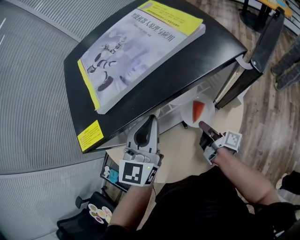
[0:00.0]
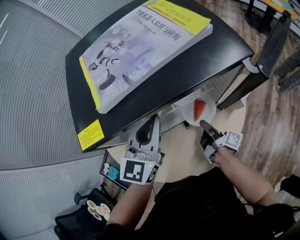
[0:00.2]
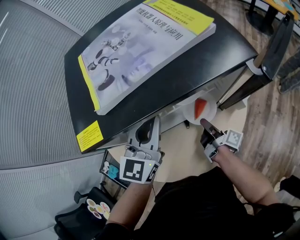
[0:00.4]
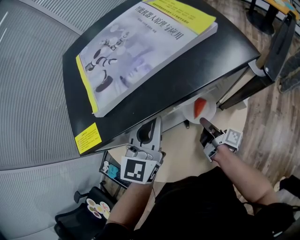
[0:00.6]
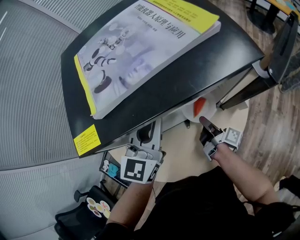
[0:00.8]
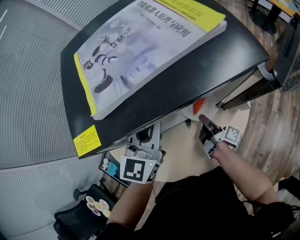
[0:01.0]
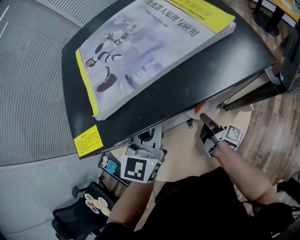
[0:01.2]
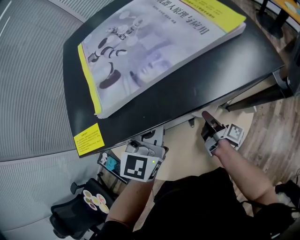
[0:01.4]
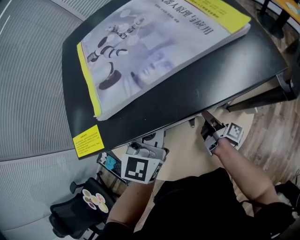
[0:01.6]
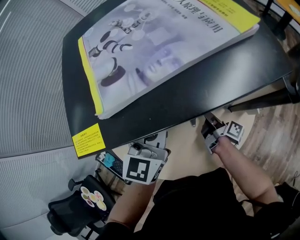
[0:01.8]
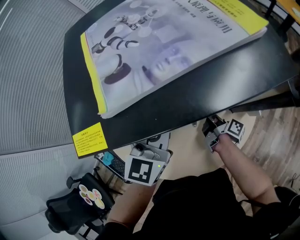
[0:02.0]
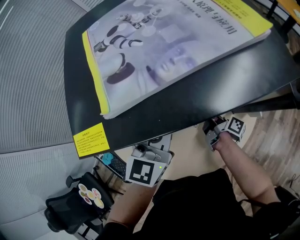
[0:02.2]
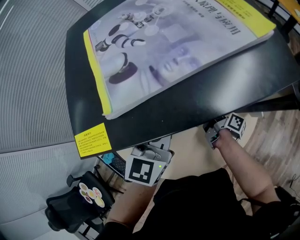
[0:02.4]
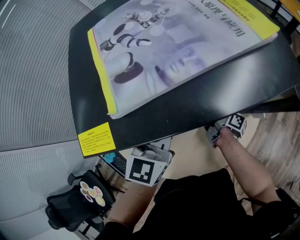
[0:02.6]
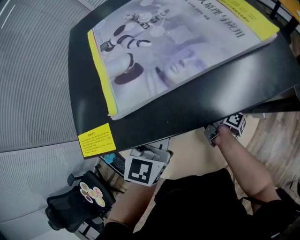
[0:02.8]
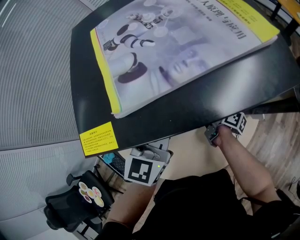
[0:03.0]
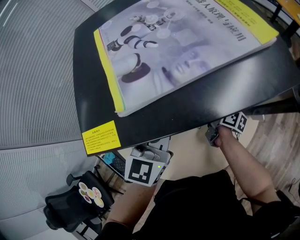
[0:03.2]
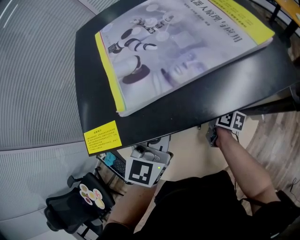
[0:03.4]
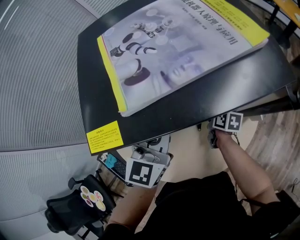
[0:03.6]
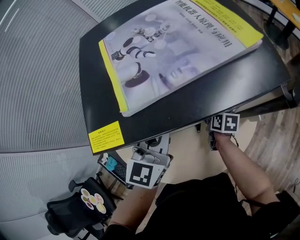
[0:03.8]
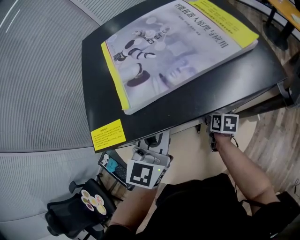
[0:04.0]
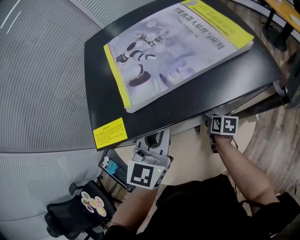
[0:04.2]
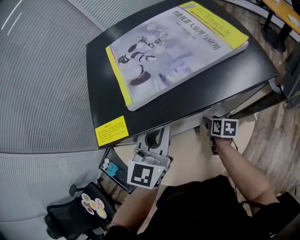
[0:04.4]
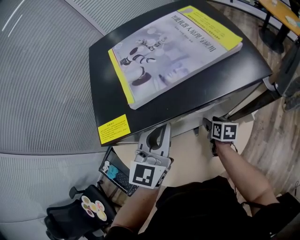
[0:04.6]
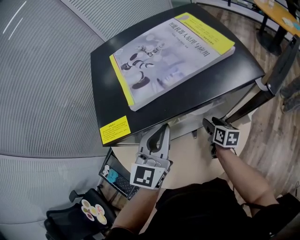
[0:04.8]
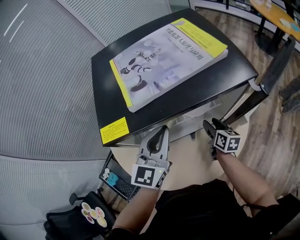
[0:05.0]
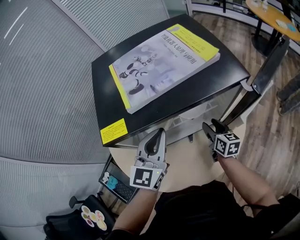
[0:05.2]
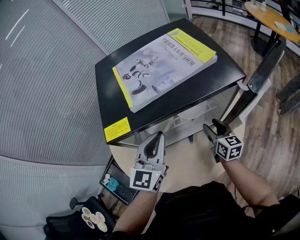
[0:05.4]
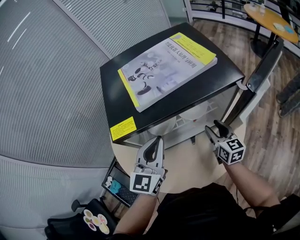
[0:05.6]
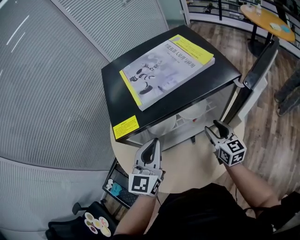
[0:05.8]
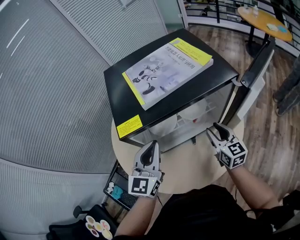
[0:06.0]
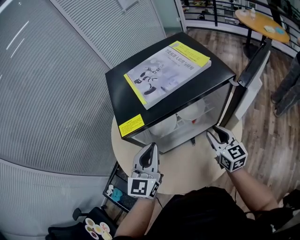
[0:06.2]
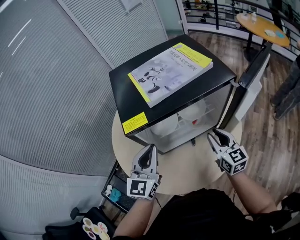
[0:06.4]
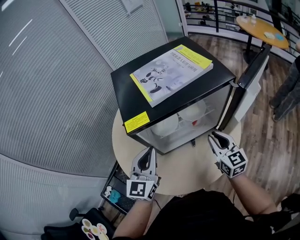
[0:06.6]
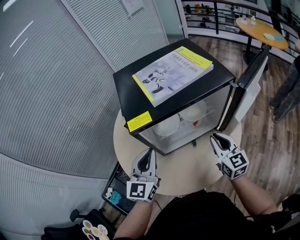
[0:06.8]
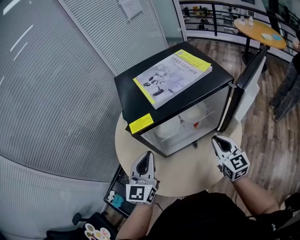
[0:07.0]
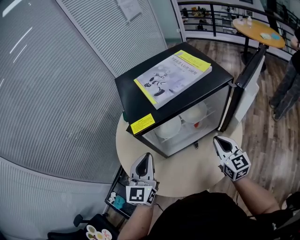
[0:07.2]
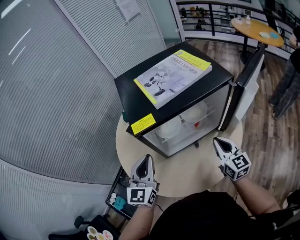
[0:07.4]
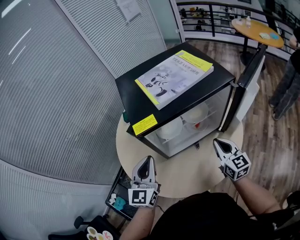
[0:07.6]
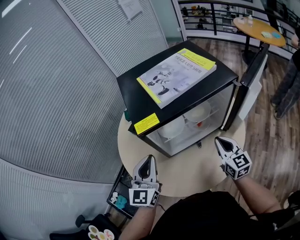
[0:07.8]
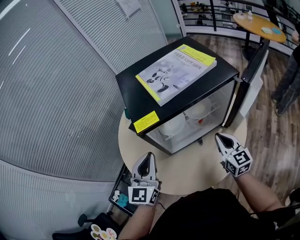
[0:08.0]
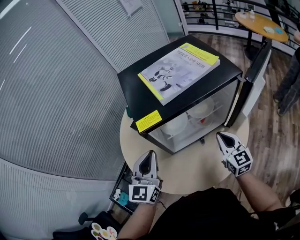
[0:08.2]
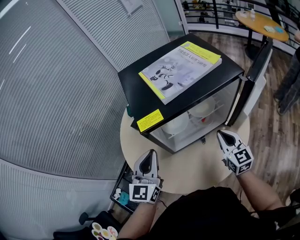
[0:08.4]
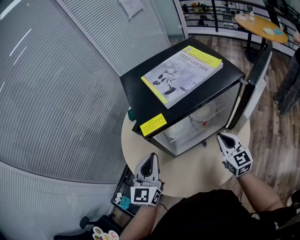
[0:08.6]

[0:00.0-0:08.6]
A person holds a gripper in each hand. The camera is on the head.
0:00.0 to 0:01.4: The right gripper travels forward by some 5 cm.
0:01.4 to 0:02.8: The right gripper changes place by approximately 5 cm.
0:02.8 to 0:04.4: The right gripper rolls counterclockwise, seen from behind, by approximately 40 degrees, and opens.
0:04.4 to 0:05.8: The right gripper travels upward by roughly 20 cm, and angles its fingers upward, by about 30 degrees; the left gripper goes roughly 5 cm backward.
0:05.8 to 0:07.2: The left gripper heads to the left and backward, covering some 10 cm. Meanwhile the right gripper goes some 10 cm backward and upward, and closes.
0:07.2 to 0:08.6: The grippers make only small movements.

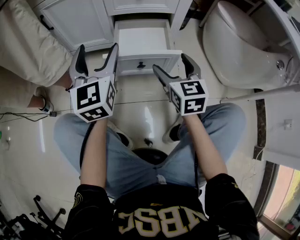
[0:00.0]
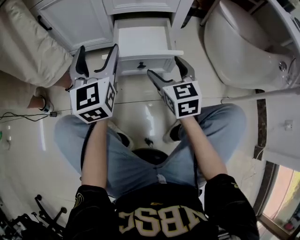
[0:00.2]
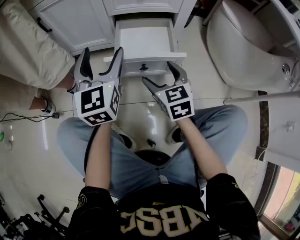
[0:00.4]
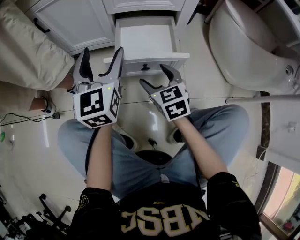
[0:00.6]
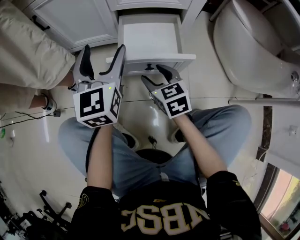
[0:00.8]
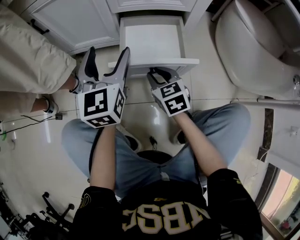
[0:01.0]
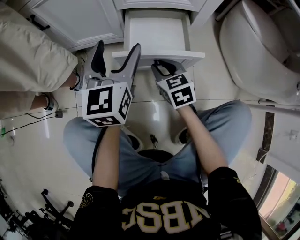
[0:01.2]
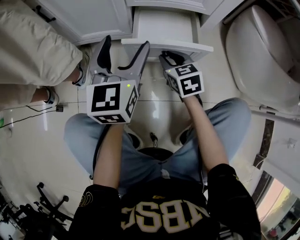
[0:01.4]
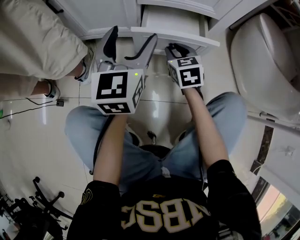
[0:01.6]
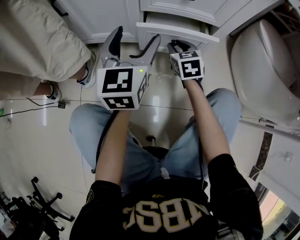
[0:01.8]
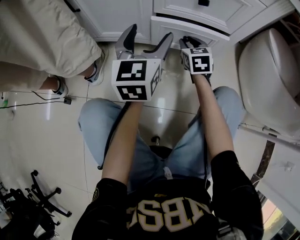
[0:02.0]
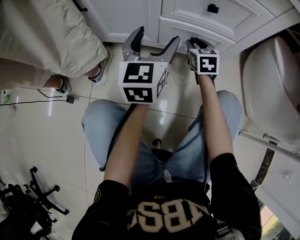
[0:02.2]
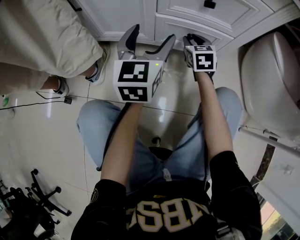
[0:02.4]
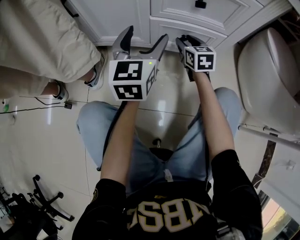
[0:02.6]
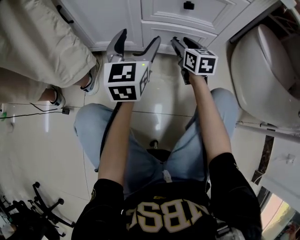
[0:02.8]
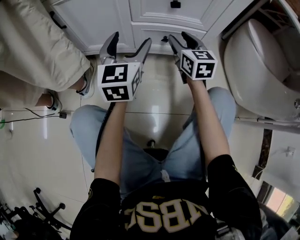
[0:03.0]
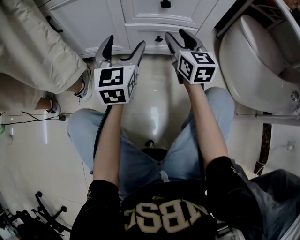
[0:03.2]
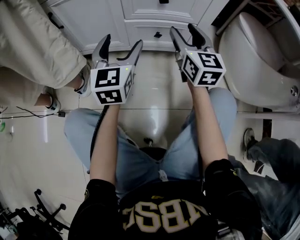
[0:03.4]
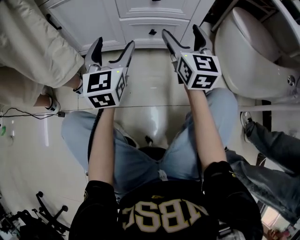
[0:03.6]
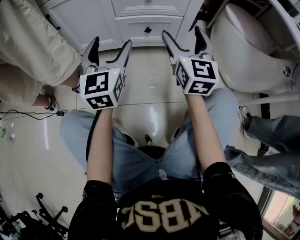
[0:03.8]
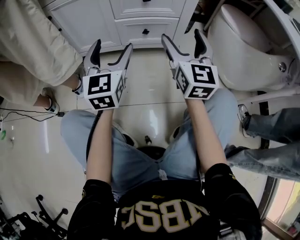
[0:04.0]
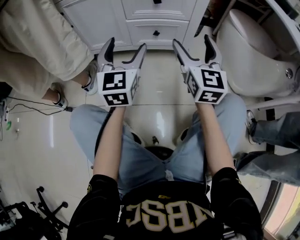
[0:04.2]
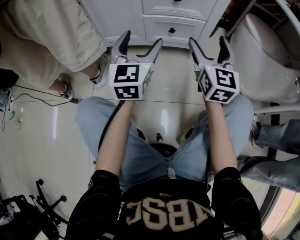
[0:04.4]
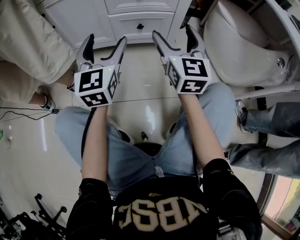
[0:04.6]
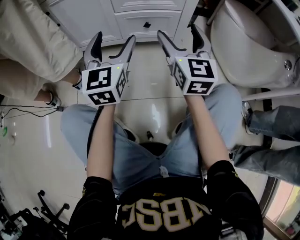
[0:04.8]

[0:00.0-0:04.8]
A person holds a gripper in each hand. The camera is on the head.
0:00.0 to 0:01.6: The left gripper shifts some 10 cm forward. The right gripper moves forward and downward, about 20 cm, and closes its fingers.
0:01.6 to 0:03.2: The right gripper heads upward, covering about 15 cm, and rotates roughly 30 degrees.
0:03.2 to 0:04.8: The right gripper moves backward and upward, about 15 cm, and opens. The left gripper moves backward, approximately 10 cm.

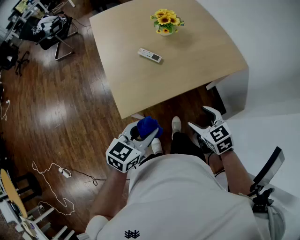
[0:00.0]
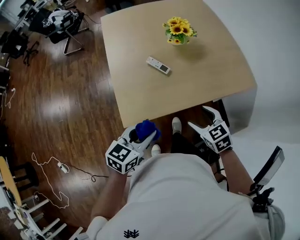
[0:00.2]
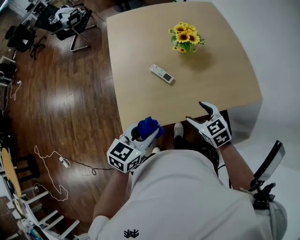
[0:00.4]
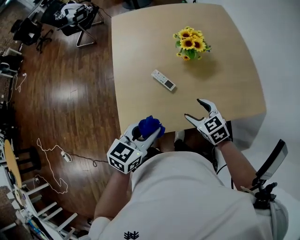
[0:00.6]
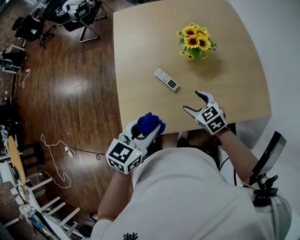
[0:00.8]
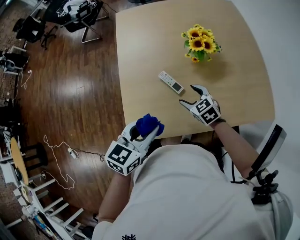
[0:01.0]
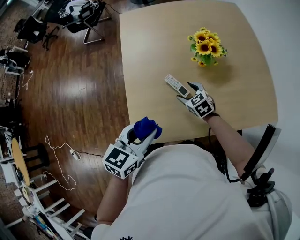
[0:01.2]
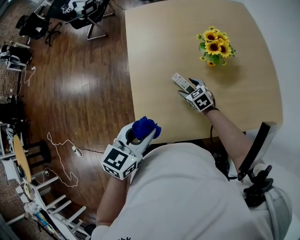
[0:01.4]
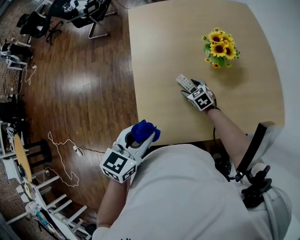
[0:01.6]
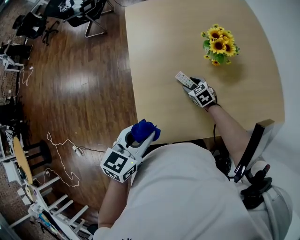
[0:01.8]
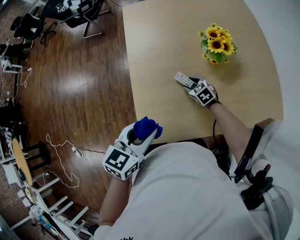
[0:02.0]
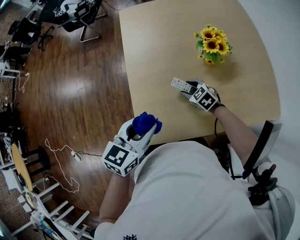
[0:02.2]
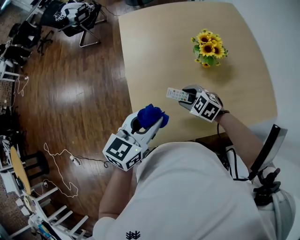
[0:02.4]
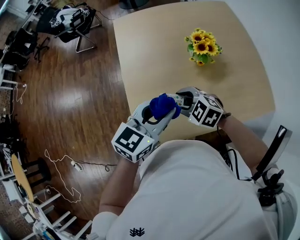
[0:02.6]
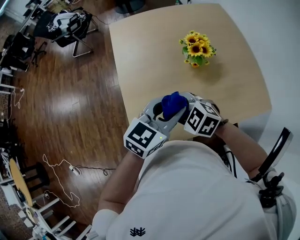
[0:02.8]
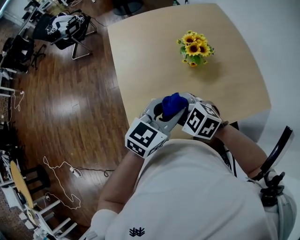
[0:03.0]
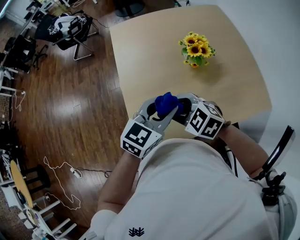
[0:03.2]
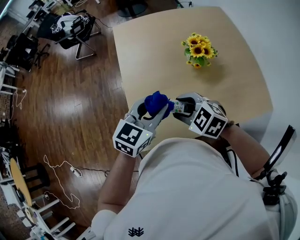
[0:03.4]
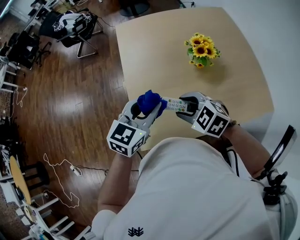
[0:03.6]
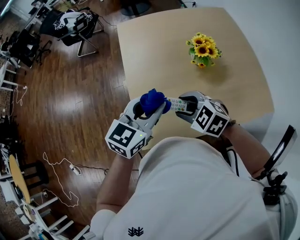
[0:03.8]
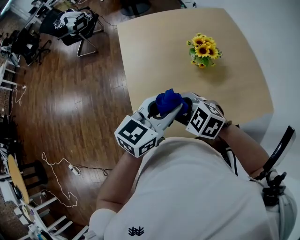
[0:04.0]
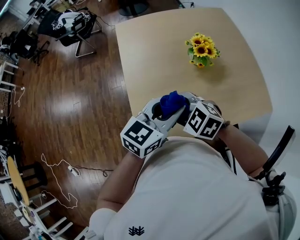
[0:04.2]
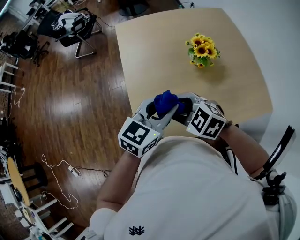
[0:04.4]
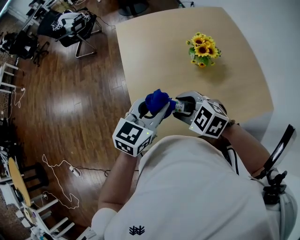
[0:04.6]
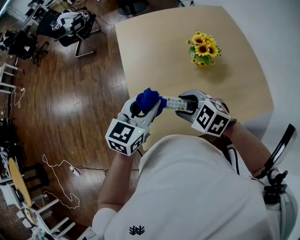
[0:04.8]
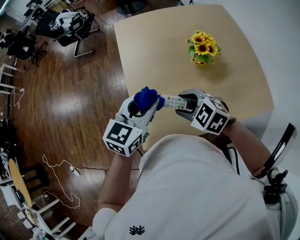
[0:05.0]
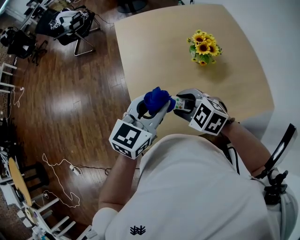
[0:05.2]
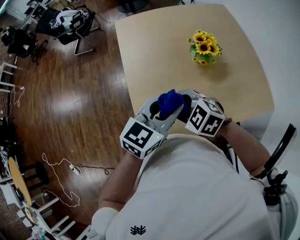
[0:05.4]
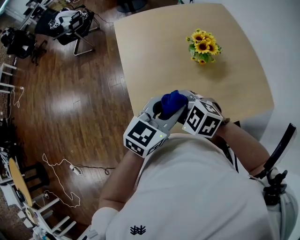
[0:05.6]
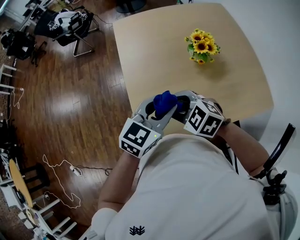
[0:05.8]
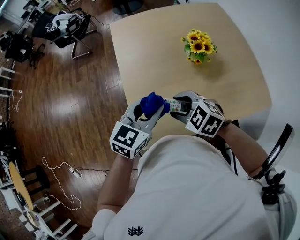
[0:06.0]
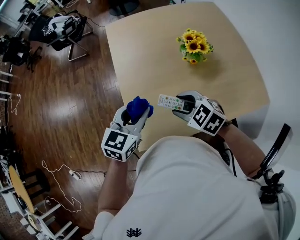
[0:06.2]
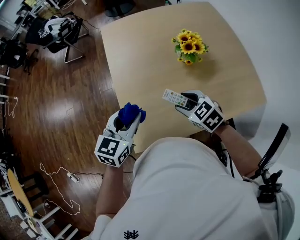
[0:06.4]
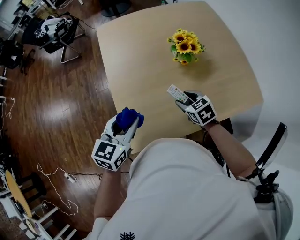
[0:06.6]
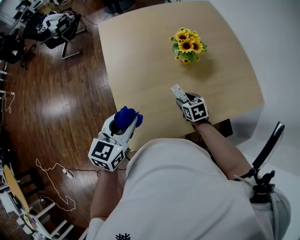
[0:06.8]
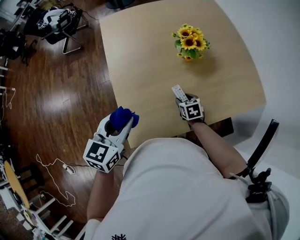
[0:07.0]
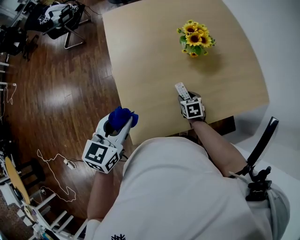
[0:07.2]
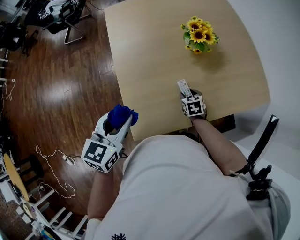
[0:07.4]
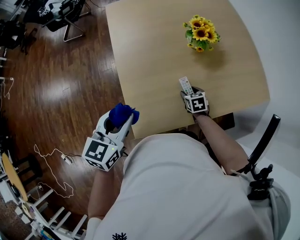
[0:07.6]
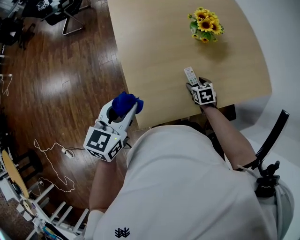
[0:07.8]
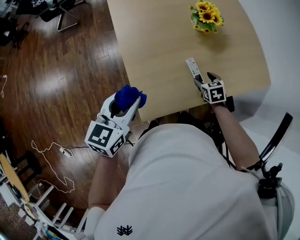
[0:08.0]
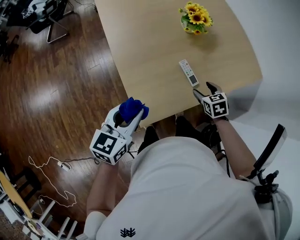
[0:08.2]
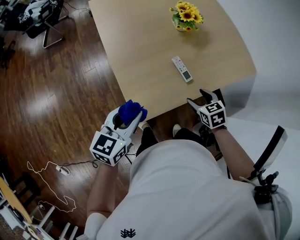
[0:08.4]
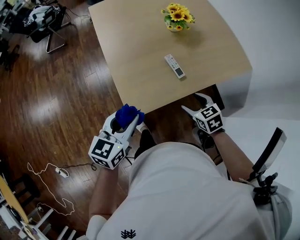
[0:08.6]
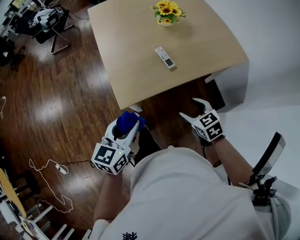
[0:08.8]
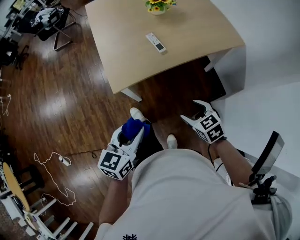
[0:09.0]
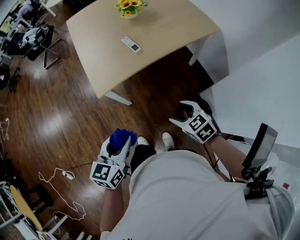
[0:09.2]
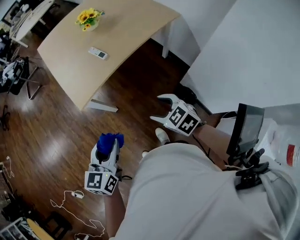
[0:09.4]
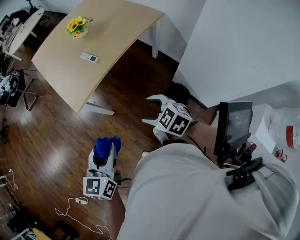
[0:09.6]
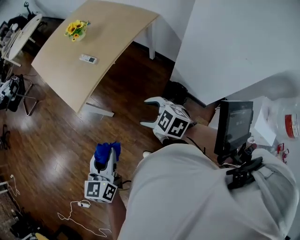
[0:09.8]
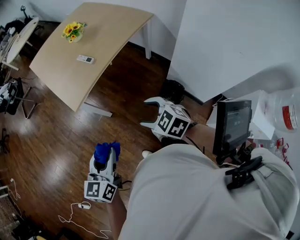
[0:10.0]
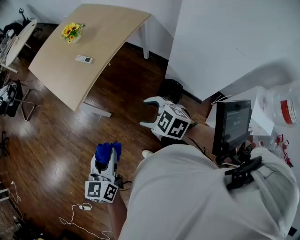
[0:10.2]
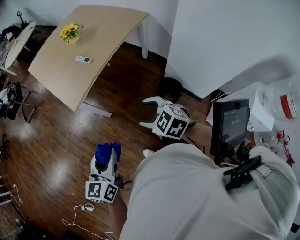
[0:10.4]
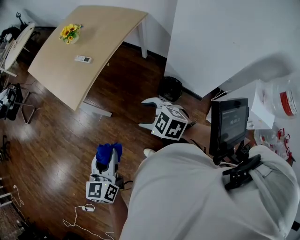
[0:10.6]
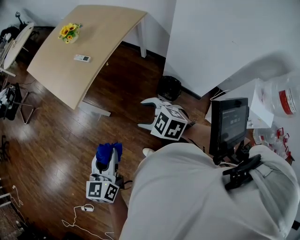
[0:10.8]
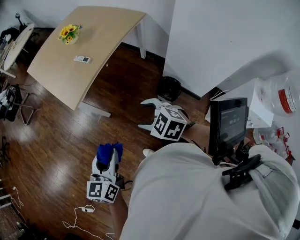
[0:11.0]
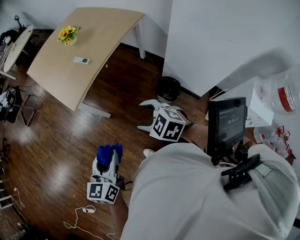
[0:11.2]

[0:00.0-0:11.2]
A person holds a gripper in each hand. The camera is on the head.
0:00.0 to 0:01.6: The right gripper shifts some 40 cm forward and downward; the left gripper shifts some 20 cm forward, and swivels some 20 degrees.
0:01.6 to 0:03.2: The left gripper goes some 10 cm to the right, and swivels approximately 20 degrees. The right gripper travels upward and backward by some 25 cm, and rotates roughly 20 degrees.
0:03.2 to 0:04.8: The left gripper goes left and right, some 10 cm each way, reversing 2 times.
0:04.8 to 0:06.4: The right gripper heads to the right and downward, covering roughly 10 cm, and changes its angle by some 20 degrees; the left gripper goes to the right and returns, approximately 10 cm each way.
0:06.4 to 0:08.0: The right gripper moves downward and to the right, some 15 cm, and swivels roughly 40 degrees. Meanwhile the left gripper moves to the left and backward, roughly 10 cm.
0:08.0 to 0:09.6: The pair of grippers is taken backward, about 50 cm. The right gripper turns by about 20 degrees.
0:09.6 to 0:11.2: Both grippers travel together backward, approximately 10 cm.
